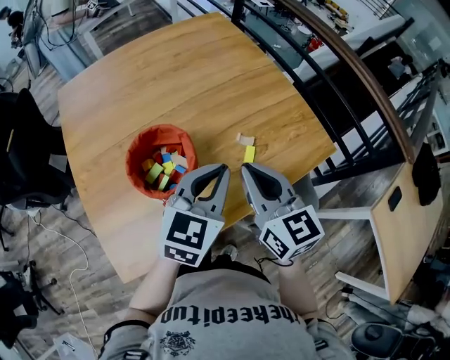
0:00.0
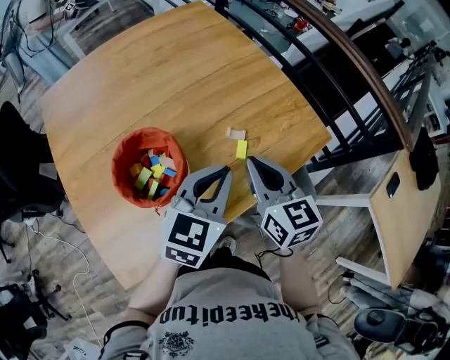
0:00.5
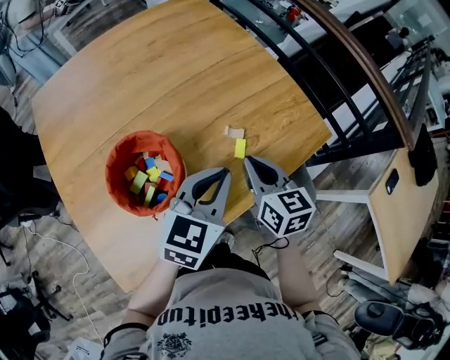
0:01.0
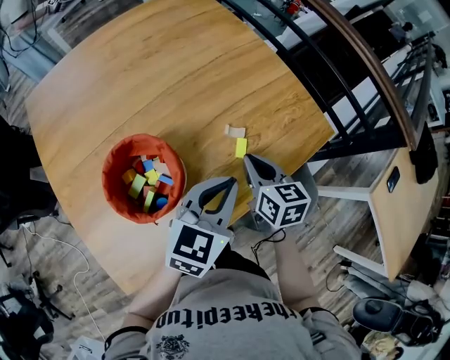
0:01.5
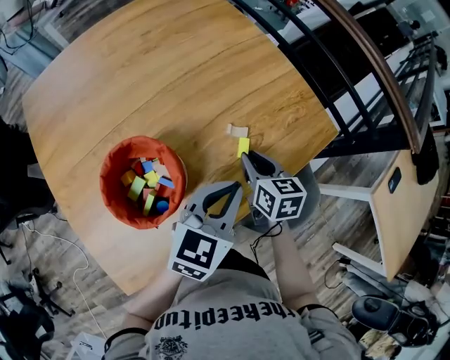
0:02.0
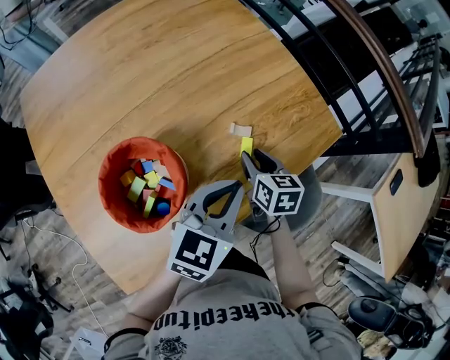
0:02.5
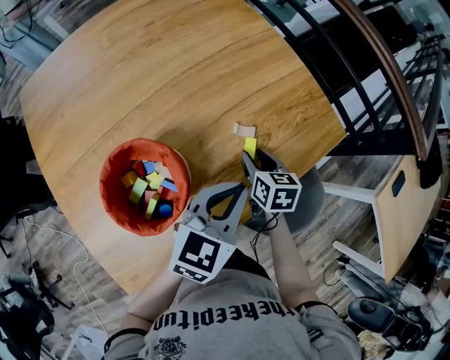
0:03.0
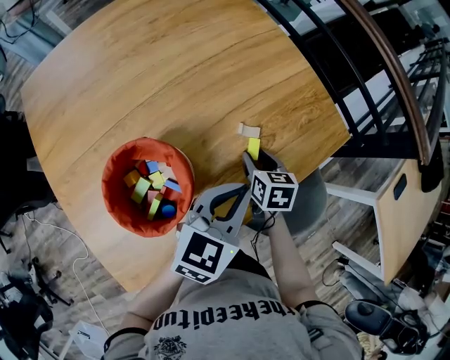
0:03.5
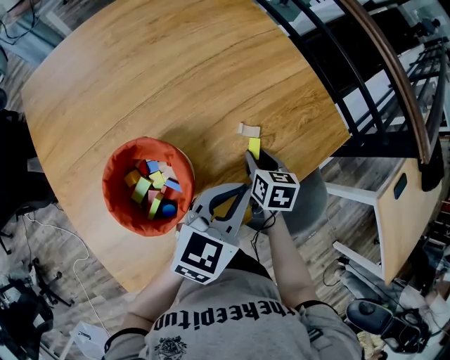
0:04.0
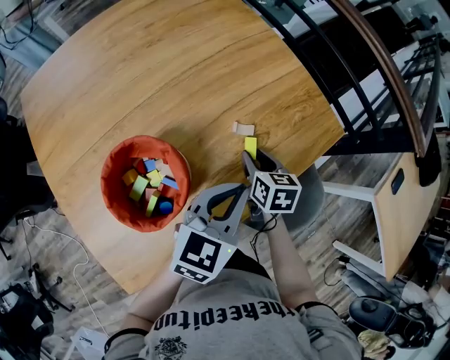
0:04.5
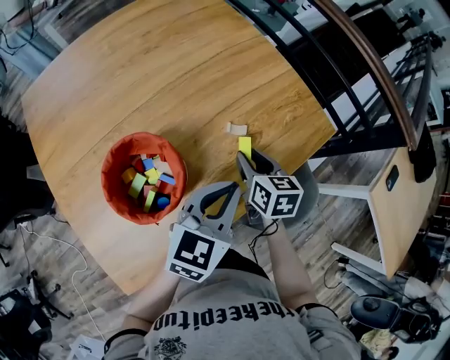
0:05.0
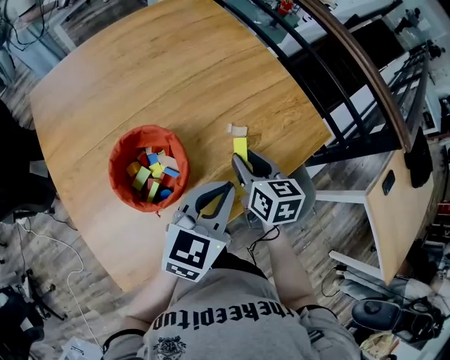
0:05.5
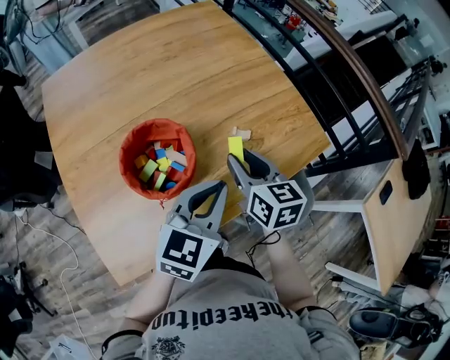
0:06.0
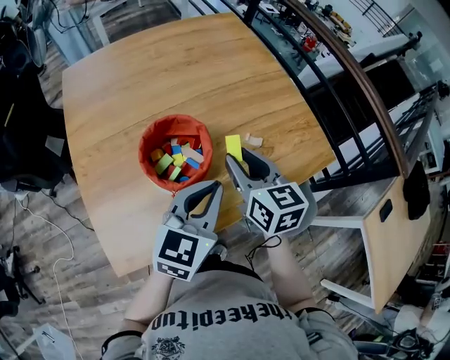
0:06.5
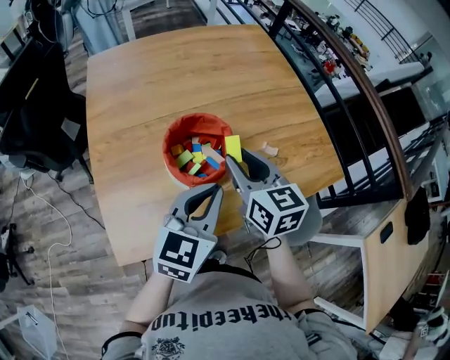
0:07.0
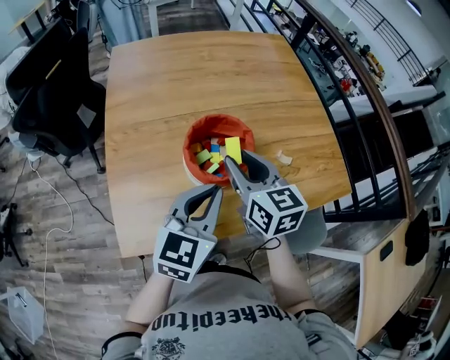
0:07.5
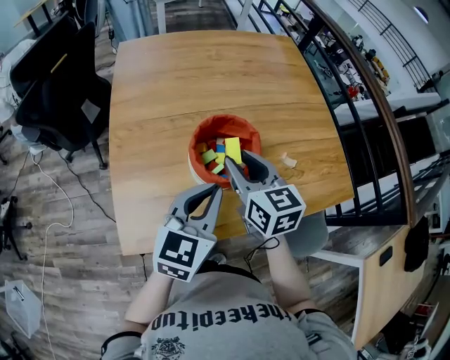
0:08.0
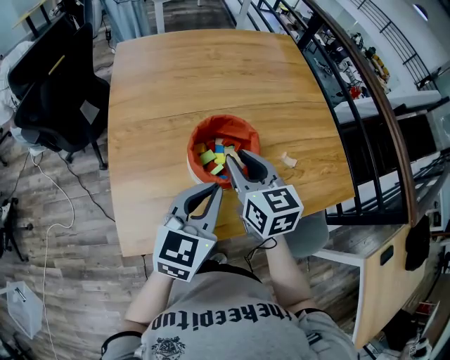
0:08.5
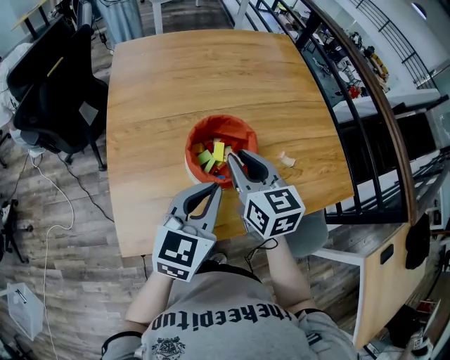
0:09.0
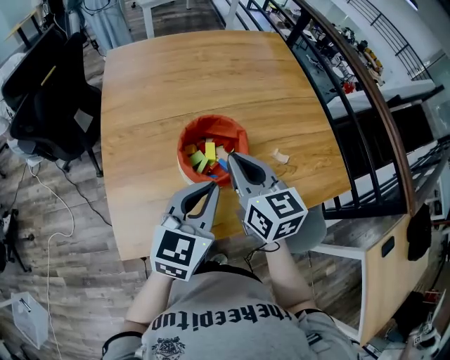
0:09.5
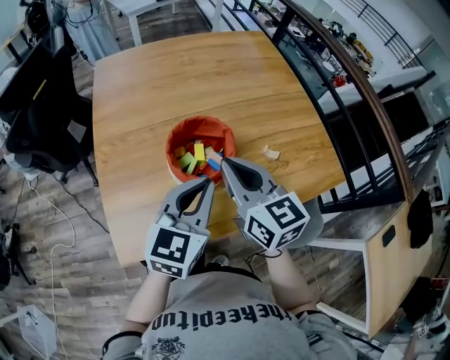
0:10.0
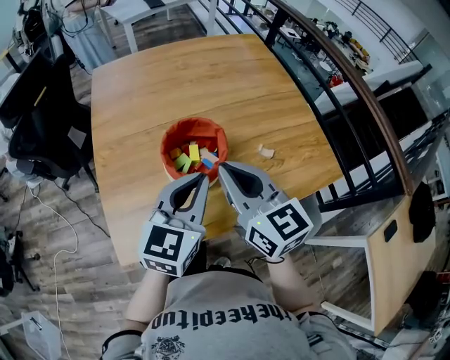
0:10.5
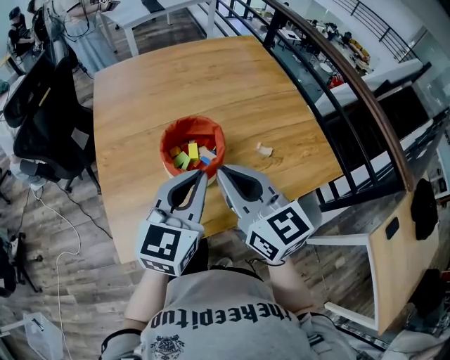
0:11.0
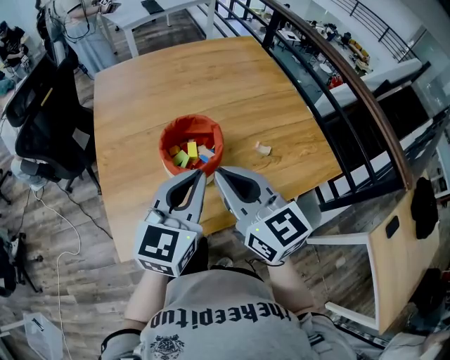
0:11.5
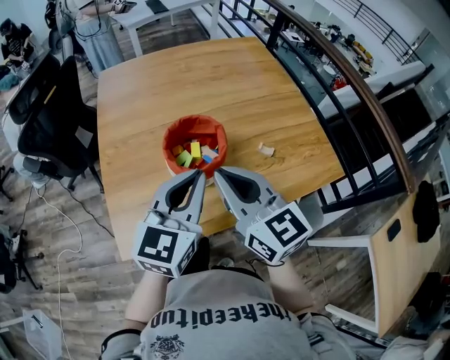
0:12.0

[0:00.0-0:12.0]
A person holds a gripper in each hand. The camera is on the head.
0:00.0 to 0:02.0: The left gripper travels downward by approximately 5 cm. The right gripper is displaced downward and forward by roughly 20 cm, and changes its angle by some 30 degrees.
0:02.0 to 0:04.0: The right gripper shifts some 5 cm downward.
0:04.0 to 0:06.0: The left gripper goes about 10 cm backward and upward. The right gripper moves upward, about 15 cm, and rotates approximately 30 degrees.
0:06.0 to 0:08.0: The grippers both shift to the left by roughly 15 cm. The right gripper changes its angle by roughly 20 degrees; the left gripper changes its angle by roughly 20 degrees.
0:08.0 to 0:10.0: The right gripper moves upward, roughly 5 cm, and closes its fingers.
0:10.0 to 0:12.0: The left gripper changes place by roughly 5 cm. Meanwhile the right gripper moves backward, roughly 5 cm.

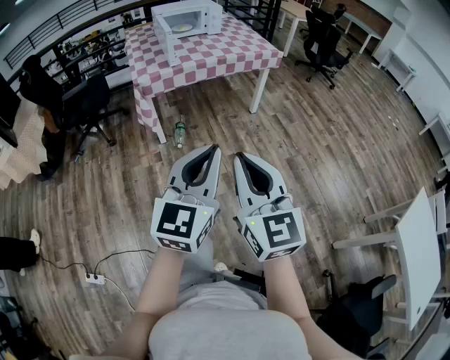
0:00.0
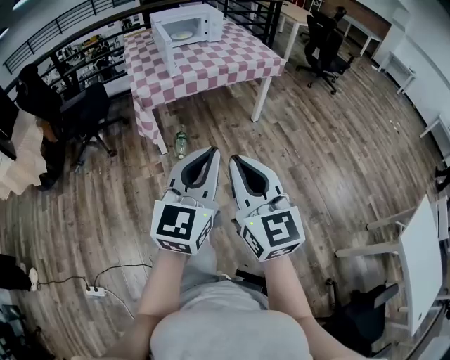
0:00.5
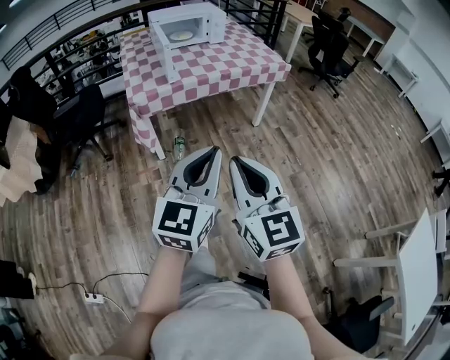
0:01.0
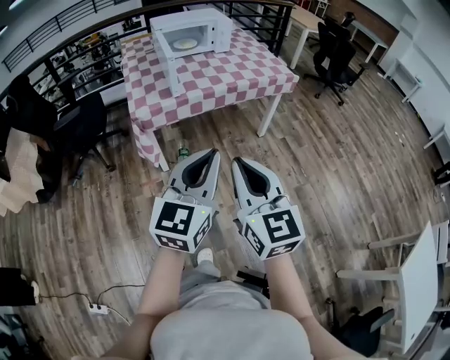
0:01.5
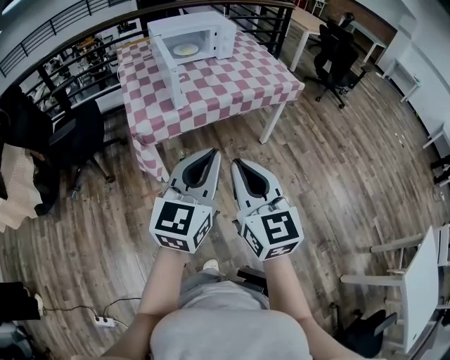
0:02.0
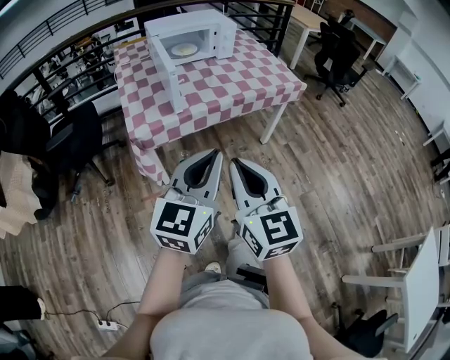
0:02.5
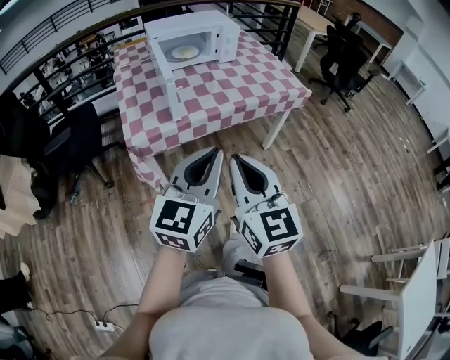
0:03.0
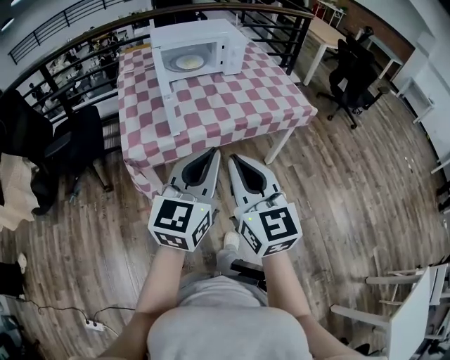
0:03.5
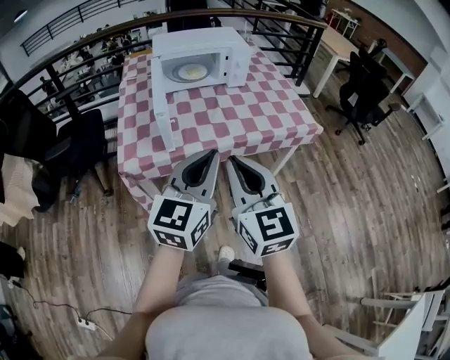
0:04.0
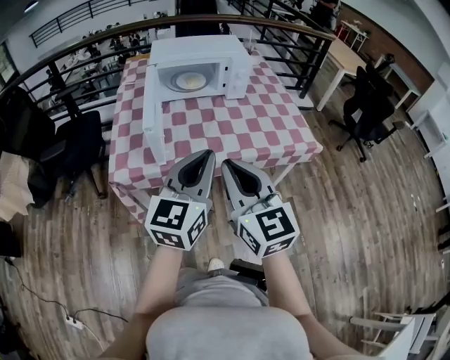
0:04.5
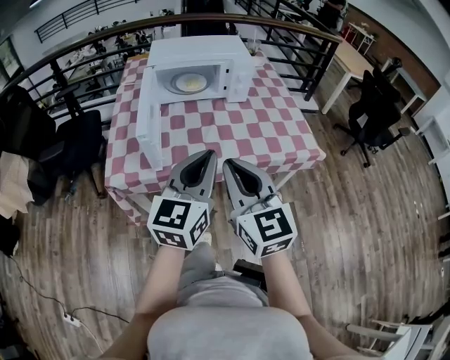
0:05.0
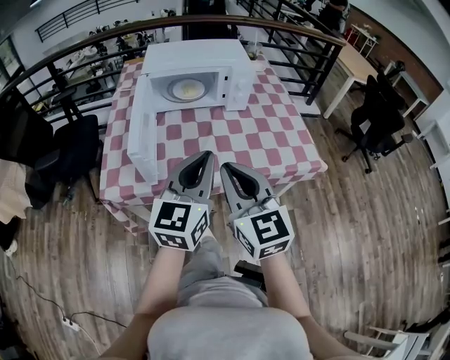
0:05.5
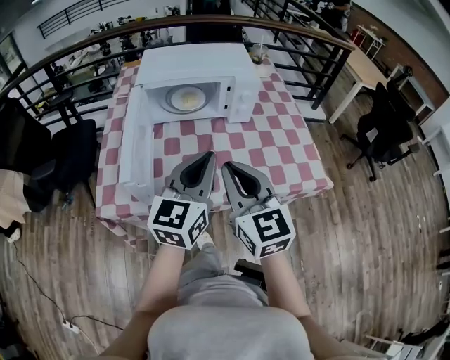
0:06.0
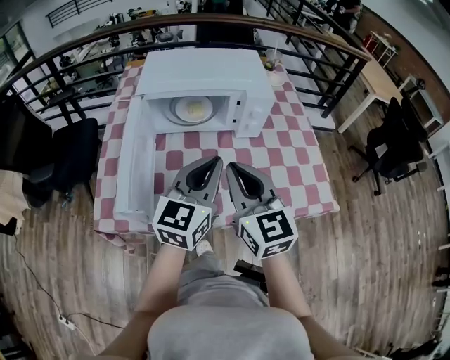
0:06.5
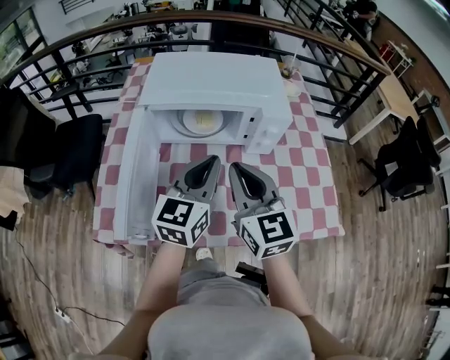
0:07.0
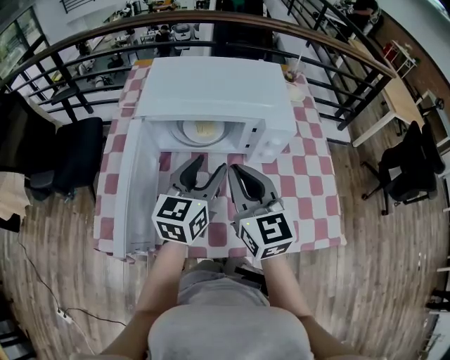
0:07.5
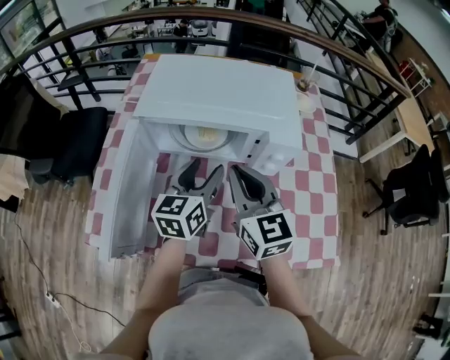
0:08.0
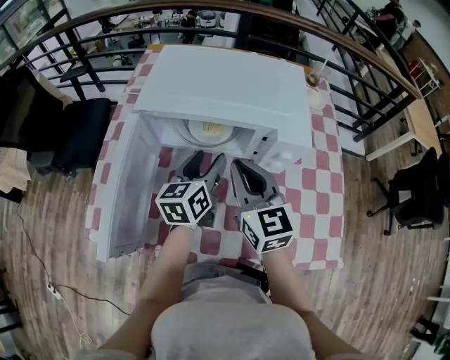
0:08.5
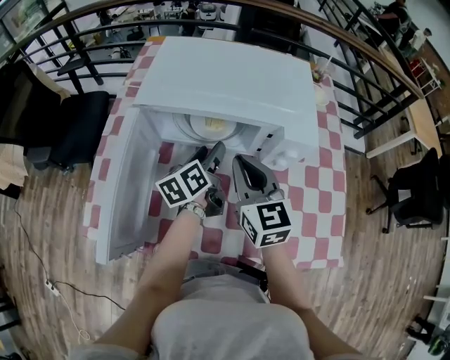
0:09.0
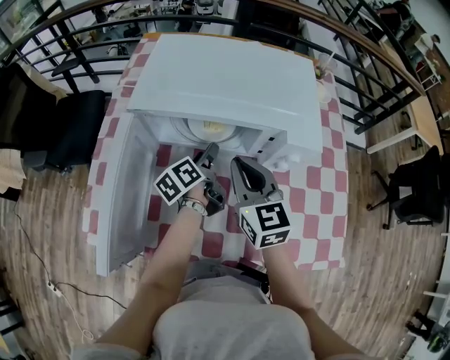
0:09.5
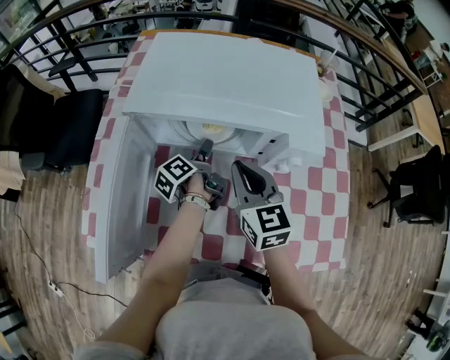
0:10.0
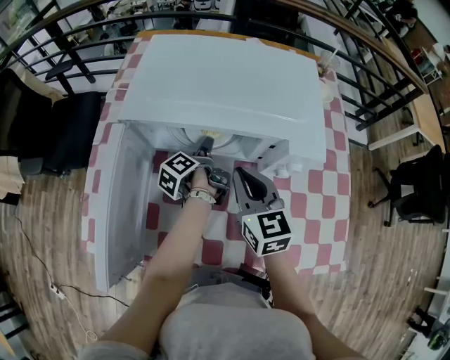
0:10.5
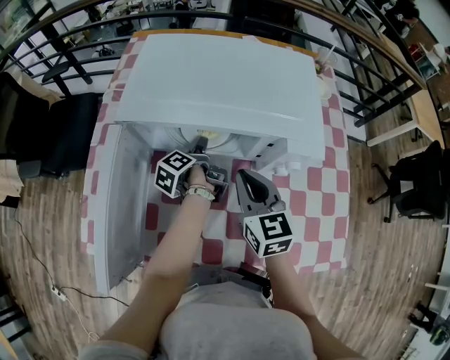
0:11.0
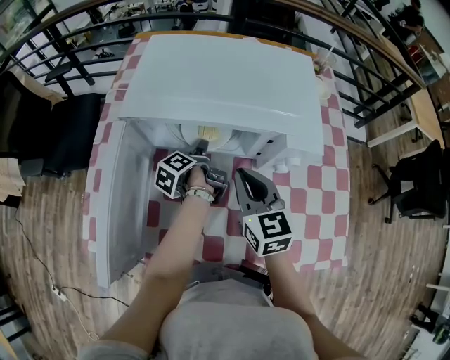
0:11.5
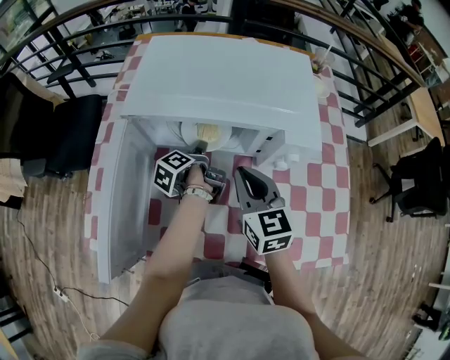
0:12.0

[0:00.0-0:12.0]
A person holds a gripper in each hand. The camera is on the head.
0:00.0 to 0:02.0: Both grippers move forward, some 35 cm.
0:02.0 to 0:04.0: The two grippers go roughly 25 cm forward.
0:04.0 to 0:06.0: Both grippers move forward, approximately 25 cm.
0:06.0 to 0:08.0: The left gripper is displaced forward and downward by roughly 30 cm, swivels about 20 degrees, and opens. Meanwhile the right gripper heads forward, covering some 25 cm.
0:08.0 to 0:10.0: The right gripper travels downward and forward by about 10 cm; the left gripper shifts some 20 cm downward and forward, and rolls counterclockwise, seen from behind, by approximately 70 degrees.
0:10.0 to 0:12.0: The grippers make only small movements.

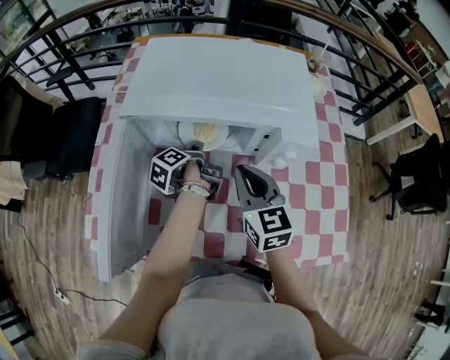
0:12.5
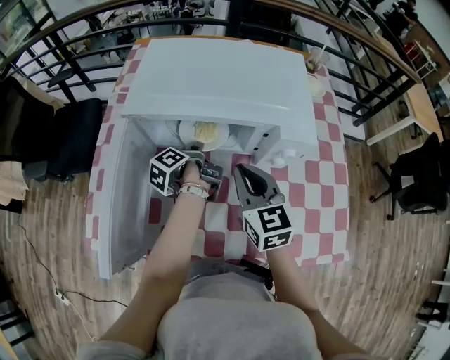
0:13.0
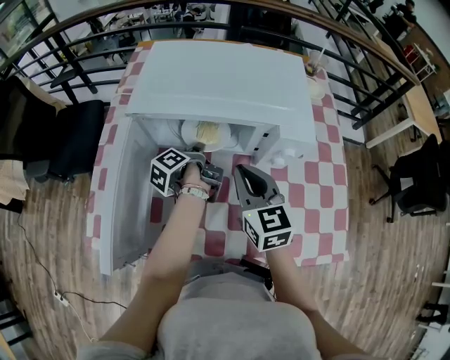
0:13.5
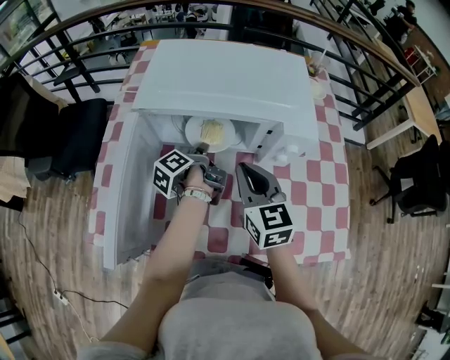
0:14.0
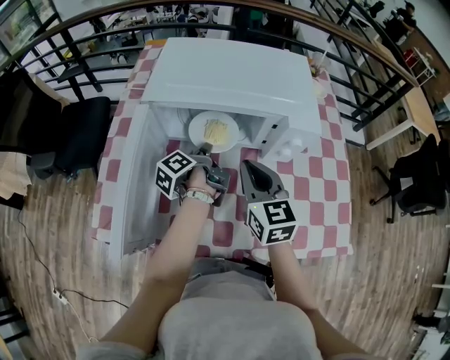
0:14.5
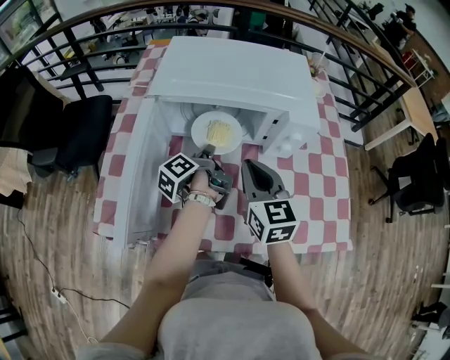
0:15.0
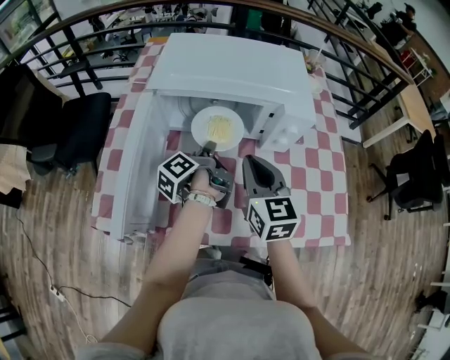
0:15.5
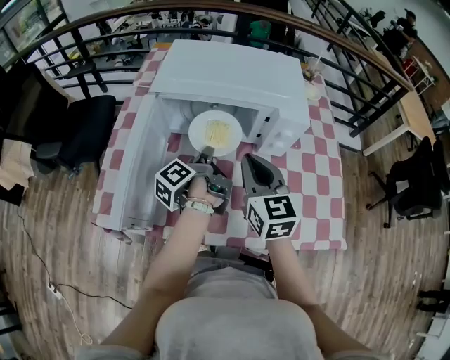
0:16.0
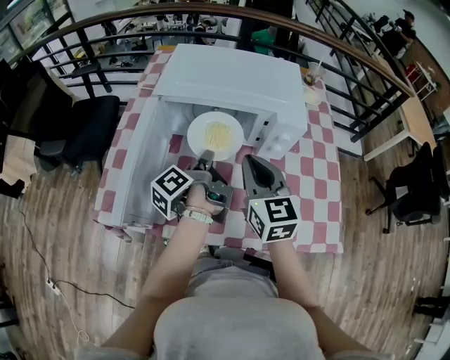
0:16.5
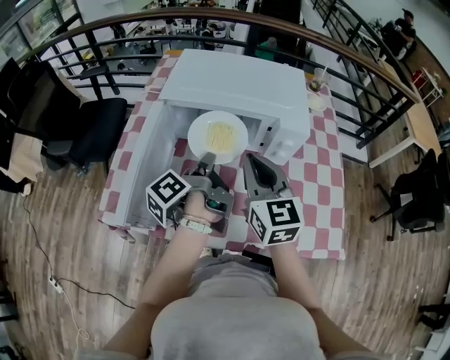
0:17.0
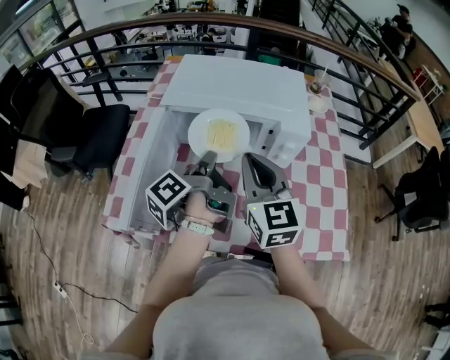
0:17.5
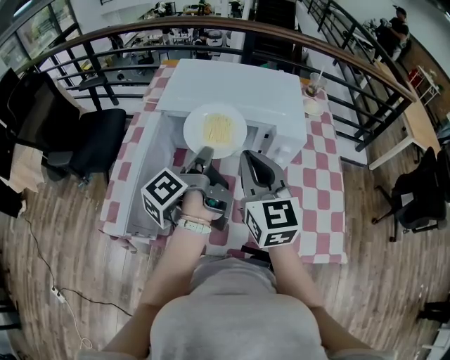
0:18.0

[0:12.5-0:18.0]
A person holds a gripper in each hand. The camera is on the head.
0:12.5 to 0:14.5: The left gripper moves upward, some 5 cm.
0:14.5 to 0:16.0: The right gripper moves approximately 5 cm. The left gripper travels backward and upward by about 10 cm.
0:16.0 to 0:18.0: The right gripper heads upward, covering about 10 cm. The left gripper heads upward, covering about 10 cm.
